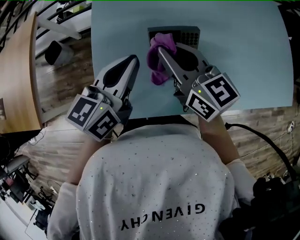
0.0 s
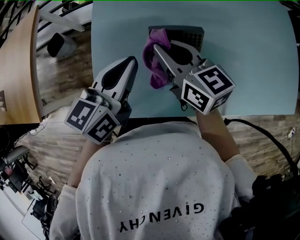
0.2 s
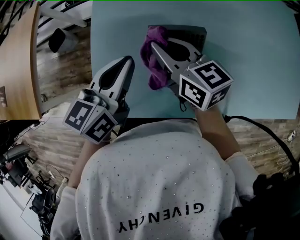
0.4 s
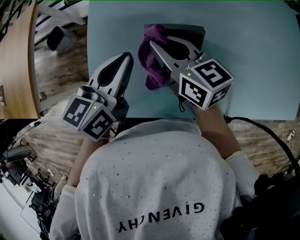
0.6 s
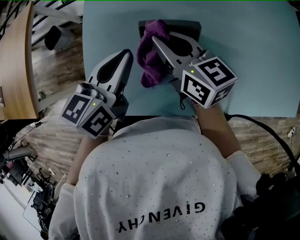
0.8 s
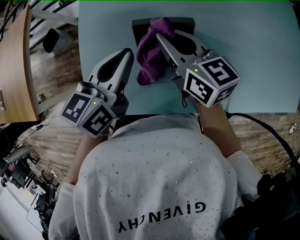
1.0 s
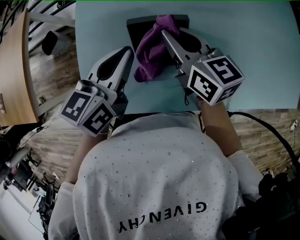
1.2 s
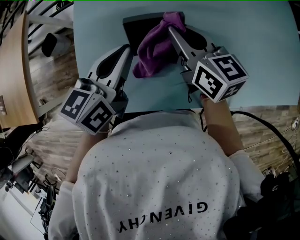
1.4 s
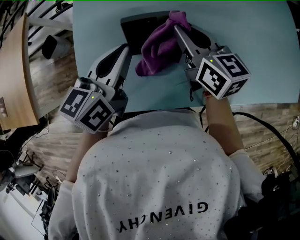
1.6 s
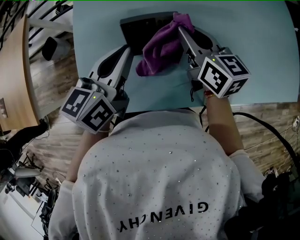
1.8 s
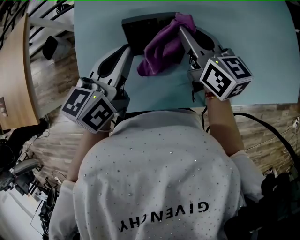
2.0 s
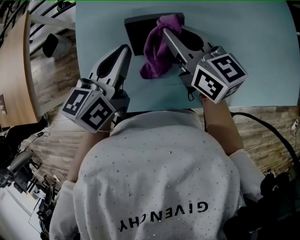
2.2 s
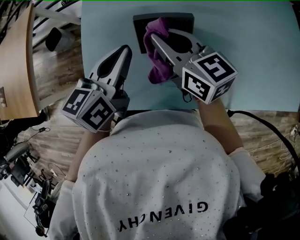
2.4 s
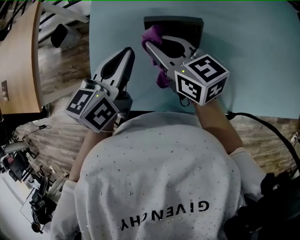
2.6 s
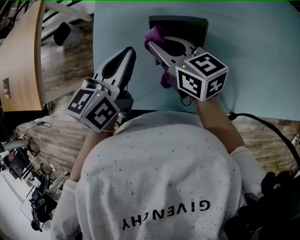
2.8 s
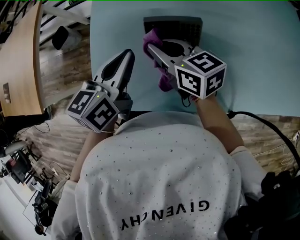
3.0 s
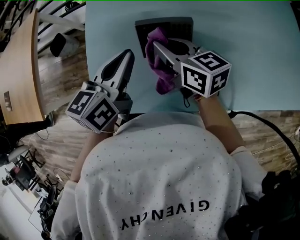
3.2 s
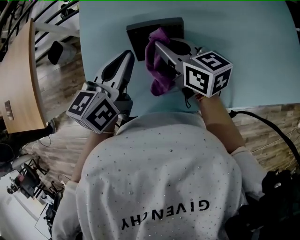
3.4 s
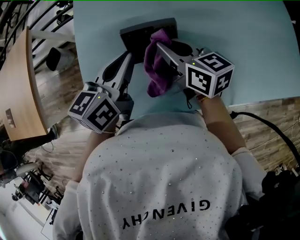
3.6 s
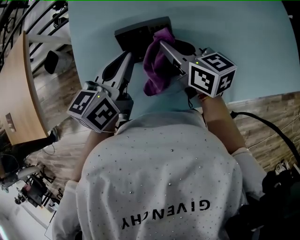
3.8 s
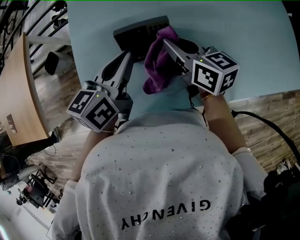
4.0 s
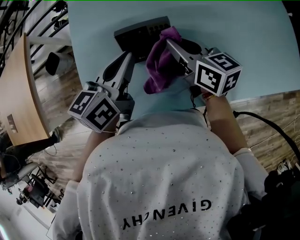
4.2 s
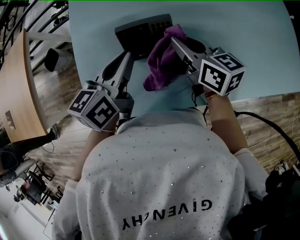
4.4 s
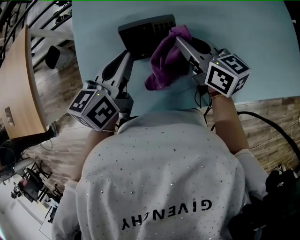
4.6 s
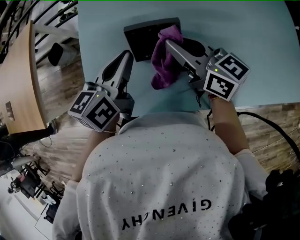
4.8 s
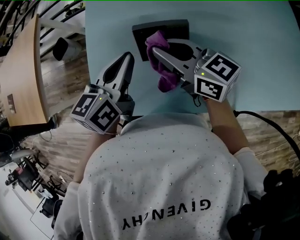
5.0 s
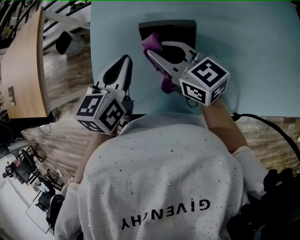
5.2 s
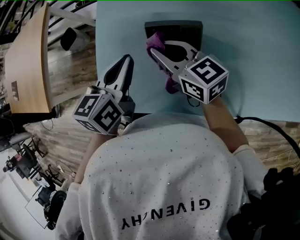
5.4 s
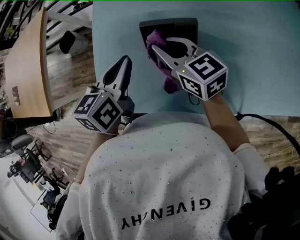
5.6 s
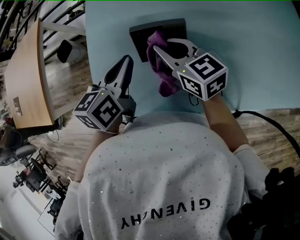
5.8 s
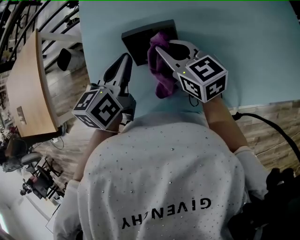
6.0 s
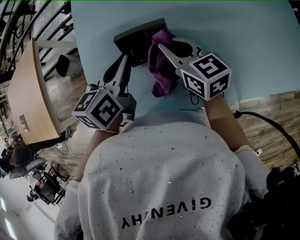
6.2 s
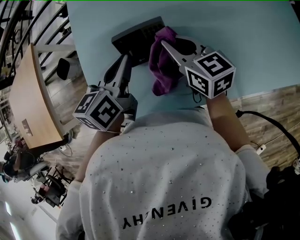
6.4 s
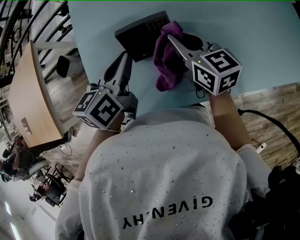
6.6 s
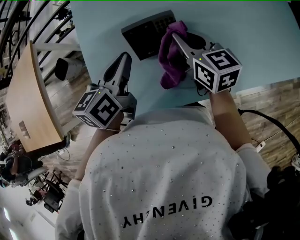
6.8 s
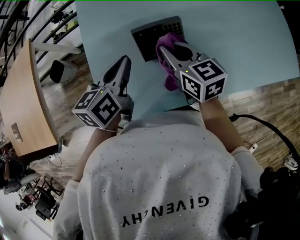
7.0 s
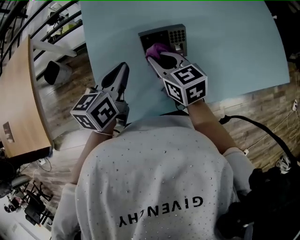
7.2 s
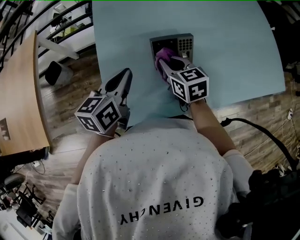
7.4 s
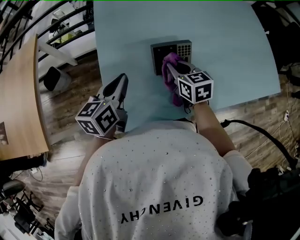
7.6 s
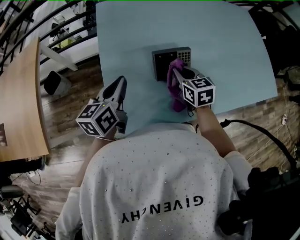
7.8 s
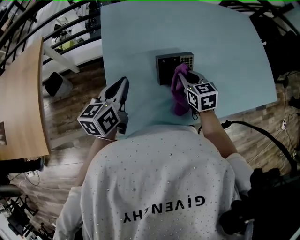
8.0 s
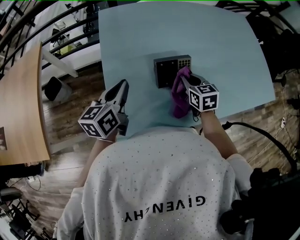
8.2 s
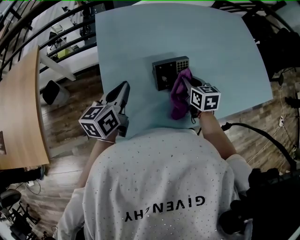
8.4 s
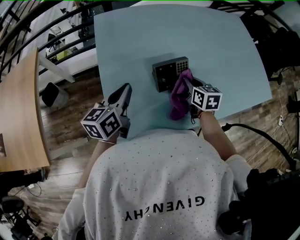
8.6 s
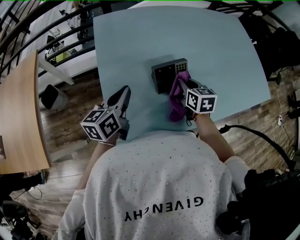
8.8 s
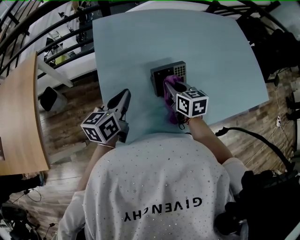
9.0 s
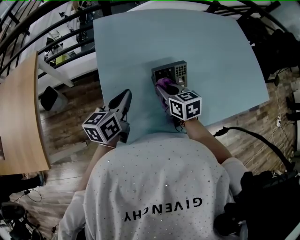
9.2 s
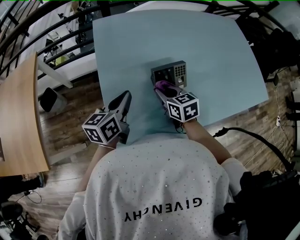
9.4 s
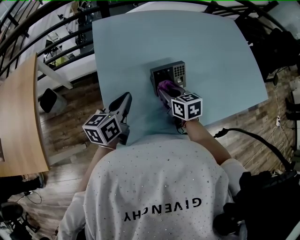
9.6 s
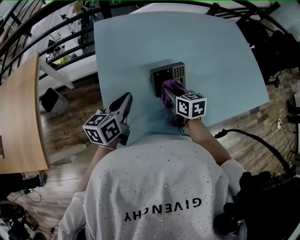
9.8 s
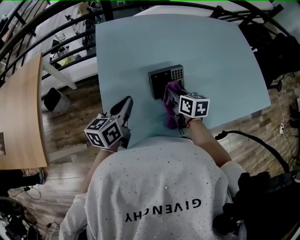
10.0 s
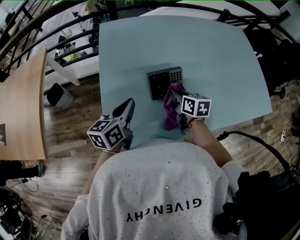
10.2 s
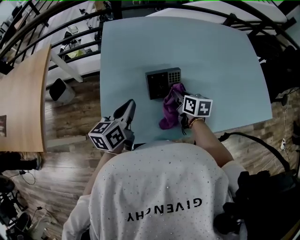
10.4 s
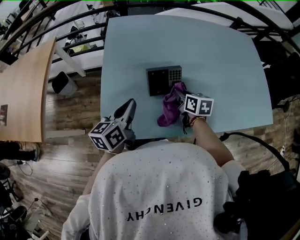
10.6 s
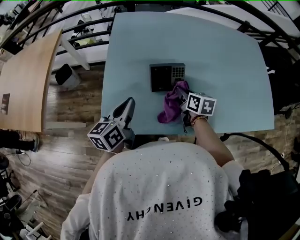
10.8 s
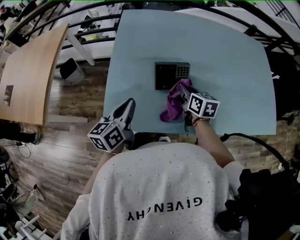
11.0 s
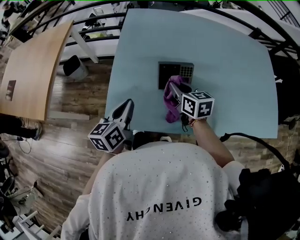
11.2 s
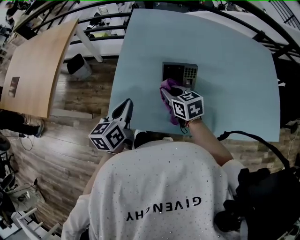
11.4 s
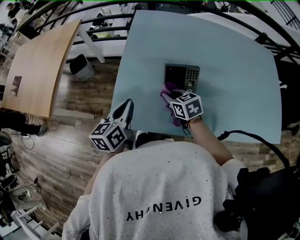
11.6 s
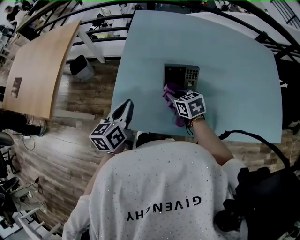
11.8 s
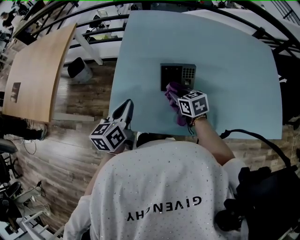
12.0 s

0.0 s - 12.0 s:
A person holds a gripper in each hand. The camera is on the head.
0.0 s - 1.6 s: The right gripper goes approximately 15 cm to the right and downward. The left gripper changes place by about 5 cm.
1.6 s - 3.0 s: The left gripper is displaced to the left by roughly 5 cm, while the right gripper travels to the left by some 15 cm, and changes its angle by some 20 degrees.
3.0 s - 4.4 s: The right gripper is displaced to the right by roughly 15 cm; the left gripper is displaced to the right by some 5 cm.
4.4 s - 6.0 s: The right gripper travels to the left by roughly 5 cm; the left gripper moves approximately 10 cm to the left and comes back.
6.0 s - 7.6 s: The left gripper travels to the left by about 15 cm. Meanwhile the right gripper moves roughly 10 cm to the left and comes back, and changes its angle by some 20 degrees.
7.6 s - 9.0 s: The right gripper reaches approximately 10 cm to the right, then returns.
9.0 s - 10.4 s: The grippers both shift to the right by about 10 cm.
10.4 s - 12.0 s: The right gripper moves to the left, some 10 cm, and swivels approximately 30 degrees; the left gripper shifts by about 5 cm.

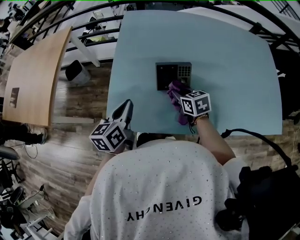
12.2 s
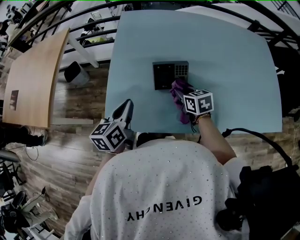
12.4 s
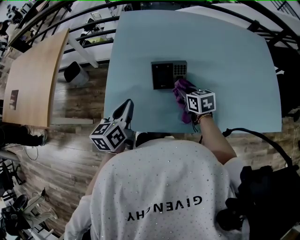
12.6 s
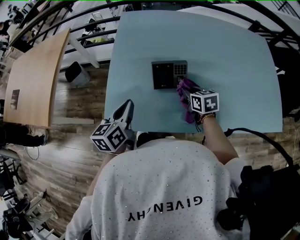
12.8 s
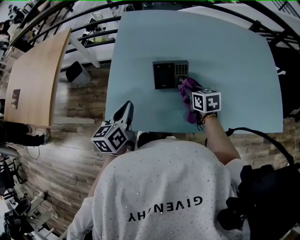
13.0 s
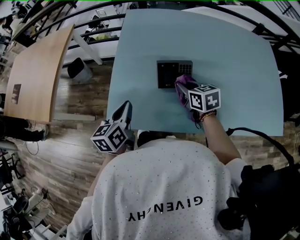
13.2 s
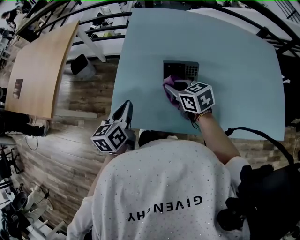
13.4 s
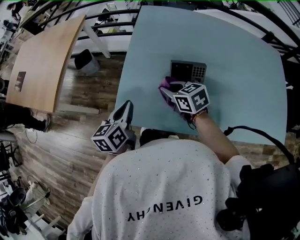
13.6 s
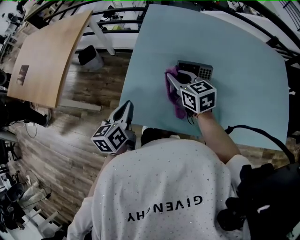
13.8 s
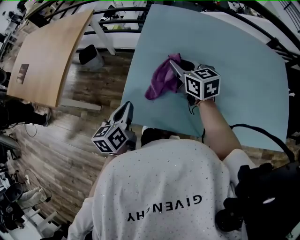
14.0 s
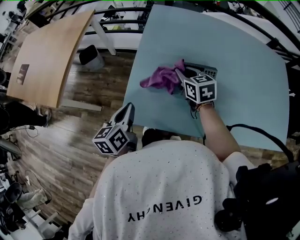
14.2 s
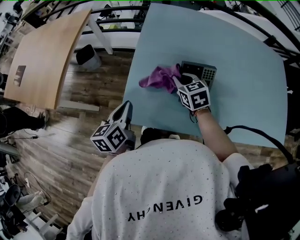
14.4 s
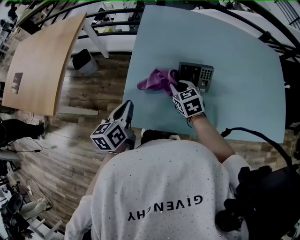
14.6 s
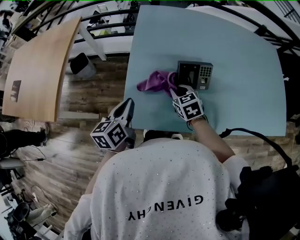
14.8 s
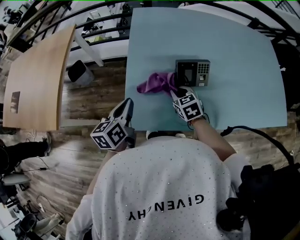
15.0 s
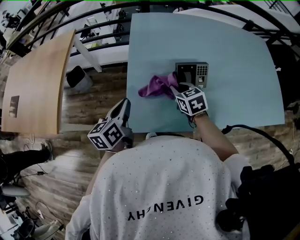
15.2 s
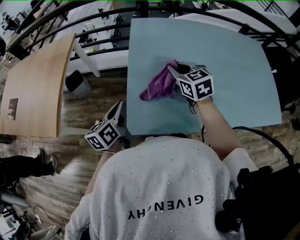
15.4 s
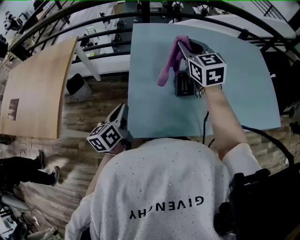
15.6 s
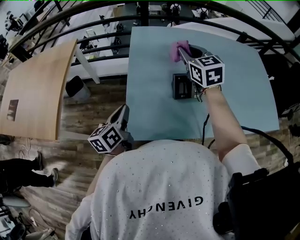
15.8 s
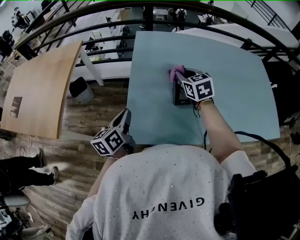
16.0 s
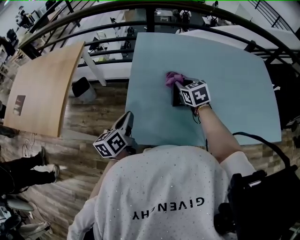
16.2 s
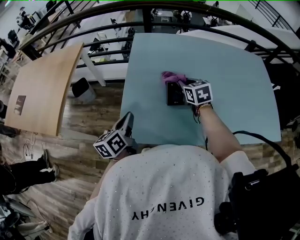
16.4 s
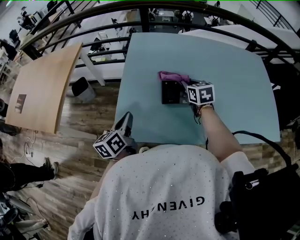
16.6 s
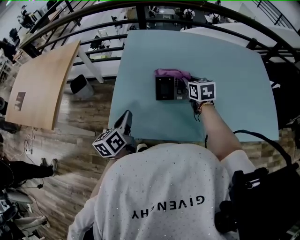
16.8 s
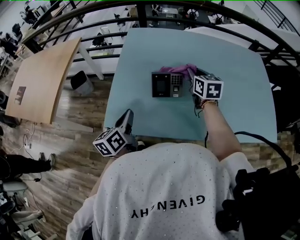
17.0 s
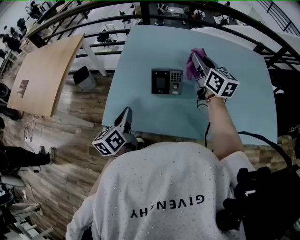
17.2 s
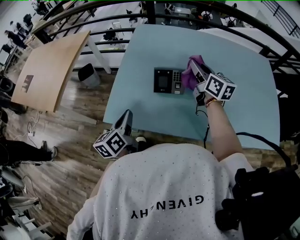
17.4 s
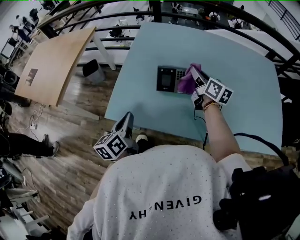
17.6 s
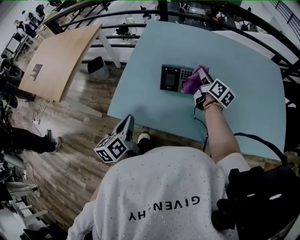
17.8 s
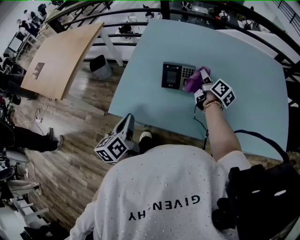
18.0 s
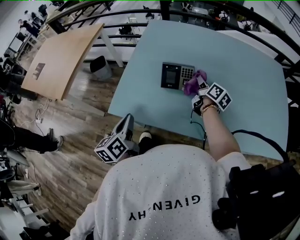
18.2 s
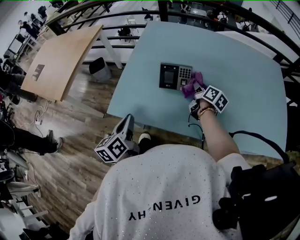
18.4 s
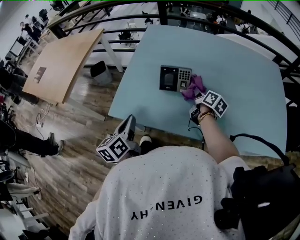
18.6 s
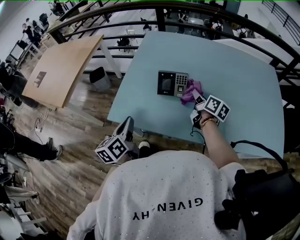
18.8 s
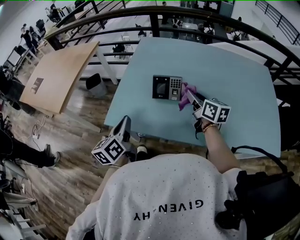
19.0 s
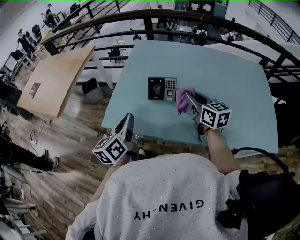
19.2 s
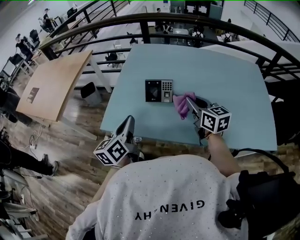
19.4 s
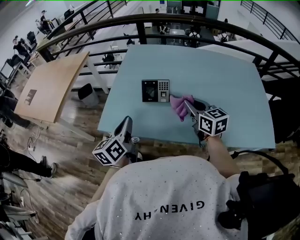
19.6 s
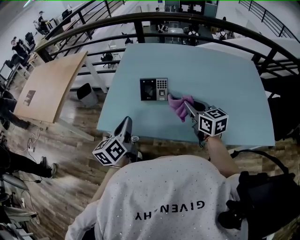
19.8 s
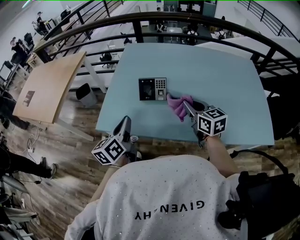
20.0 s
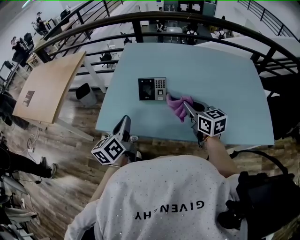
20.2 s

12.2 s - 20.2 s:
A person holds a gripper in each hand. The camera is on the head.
12.2 s - 13.8 s: The right gripper heads to the left, upward and forward, covering about 15 cm; the left gripper moves to the left, about 5 cm.
13.8 s - 15.4 s: The right gripper travels downward and back again, approximately 15 cm each way, while the left gripper goes about 10 cm to the left and forward.
15.4 s - 17.0 s: The grippers both shift to the right by roughly 20 cm.
17.0 s - 18.6 s: The right gripper shifts some 15 cm downward and backward, and twists some 50 degrees clockwise, seen from behind, while the left gripper heads backward, covering roughly 10 cm.
18.6 s - 20.2 s: The right gripper travels upward and backward by roughly 20 cm, and twists approximately 50 degrees counterclockwise, seen from behind; the left gripper shifts approximately 10 cm to the right and upward.

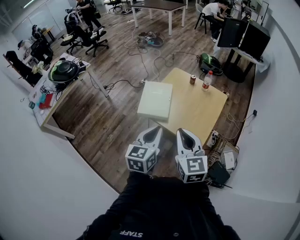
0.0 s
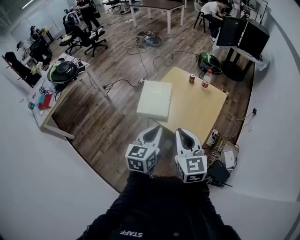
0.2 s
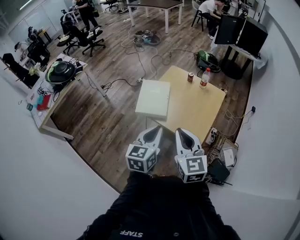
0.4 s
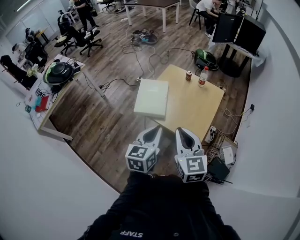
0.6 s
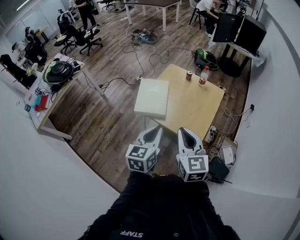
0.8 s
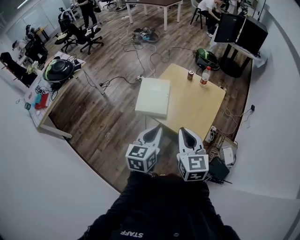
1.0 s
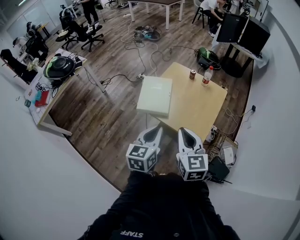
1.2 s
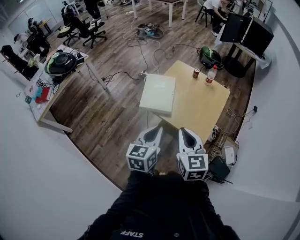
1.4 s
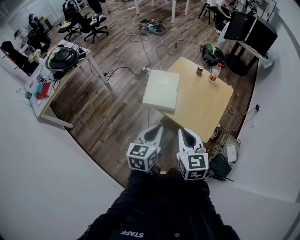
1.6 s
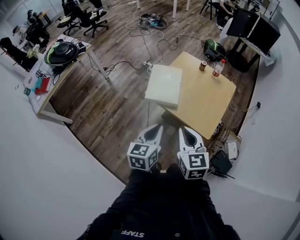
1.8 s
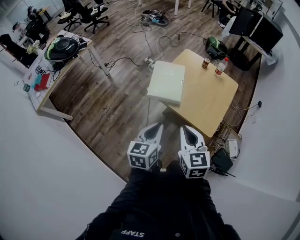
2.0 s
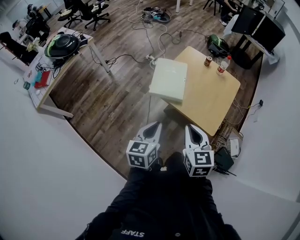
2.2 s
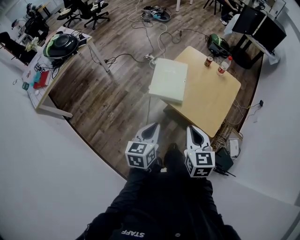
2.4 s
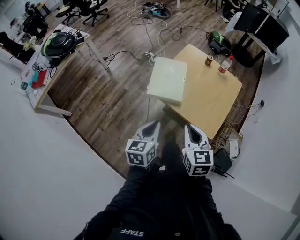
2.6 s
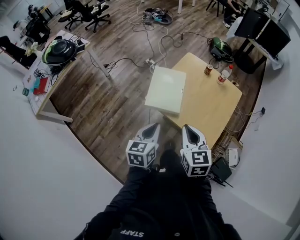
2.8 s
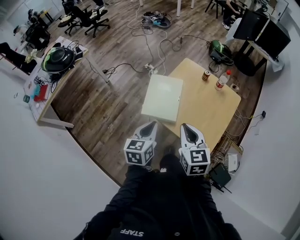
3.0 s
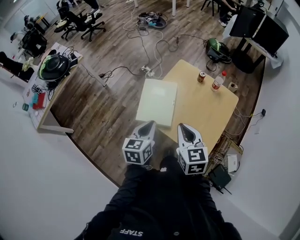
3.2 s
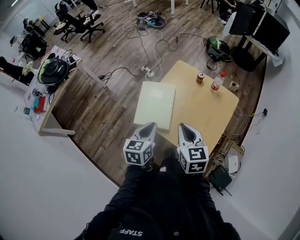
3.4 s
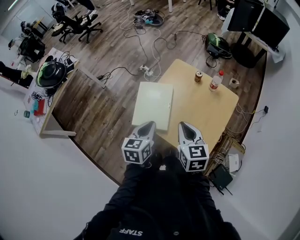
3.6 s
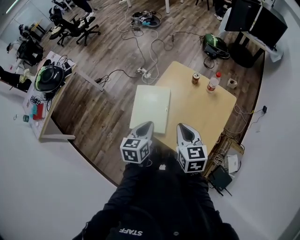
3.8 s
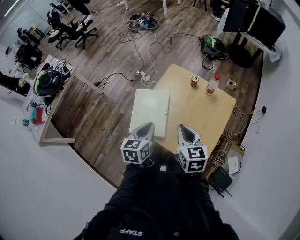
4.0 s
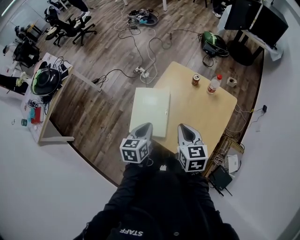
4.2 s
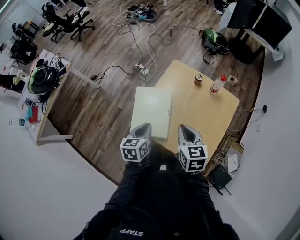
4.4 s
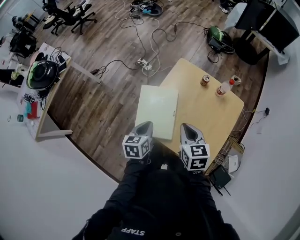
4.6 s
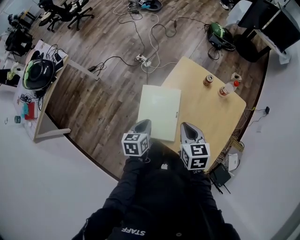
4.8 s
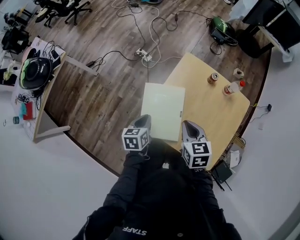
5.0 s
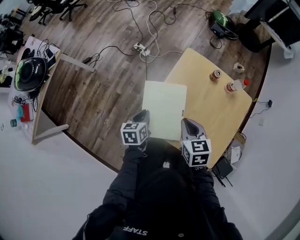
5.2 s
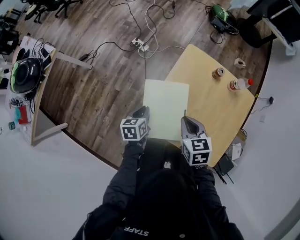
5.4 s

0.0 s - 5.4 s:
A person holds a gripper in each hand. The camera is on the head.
0.0 s - 1.4 s: The grippers move only a little.
1.4 s - 2.8 s: The left gripper goes approximately 10 cm forward, downward and to the left; the right gripper heads forward and downward, covering some 10 cm.
2.8 s - 4.0 s: Both grippers travel together forward and to the right, approximately 20 cm.
4.0 s - 5.4 s: The right gripper shifts about 25 cm forward, downward and to the left. Meanwhile the left gripper goes some 30 cm downward, to the left and forward, and turns by approximately 20 degrees.
